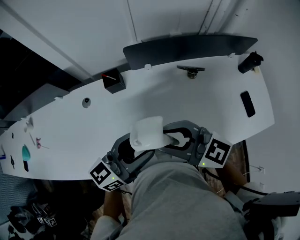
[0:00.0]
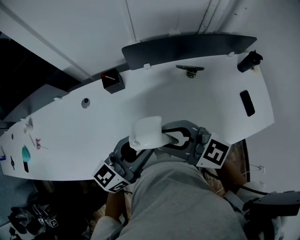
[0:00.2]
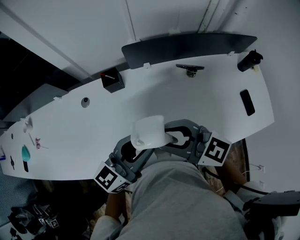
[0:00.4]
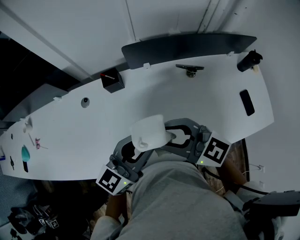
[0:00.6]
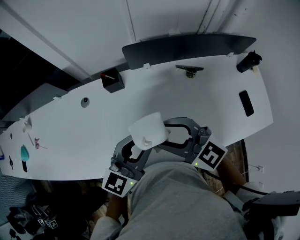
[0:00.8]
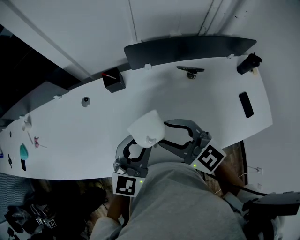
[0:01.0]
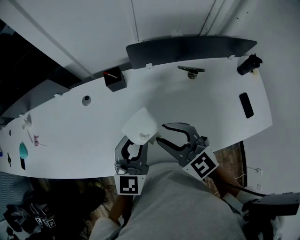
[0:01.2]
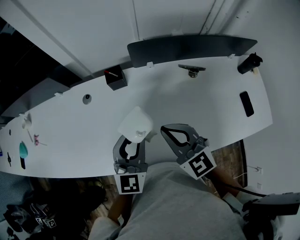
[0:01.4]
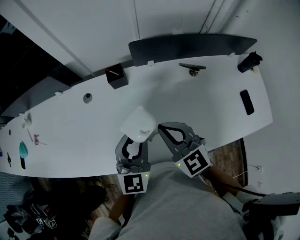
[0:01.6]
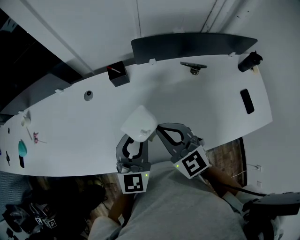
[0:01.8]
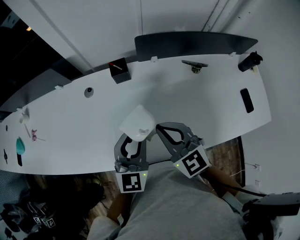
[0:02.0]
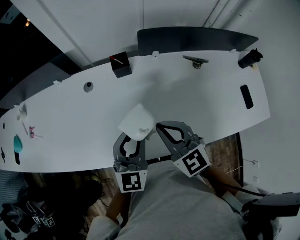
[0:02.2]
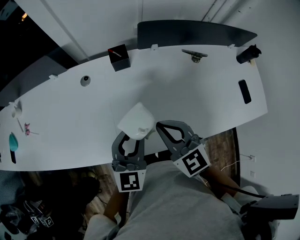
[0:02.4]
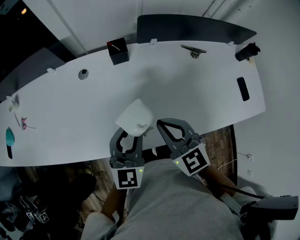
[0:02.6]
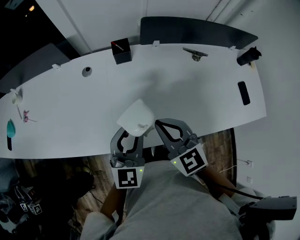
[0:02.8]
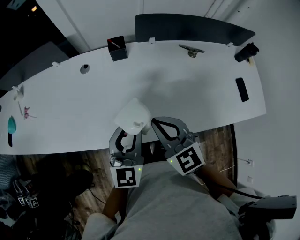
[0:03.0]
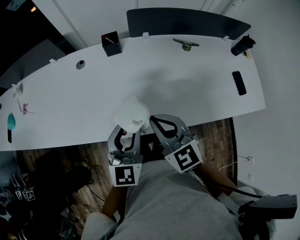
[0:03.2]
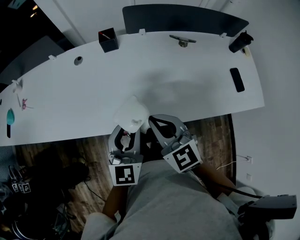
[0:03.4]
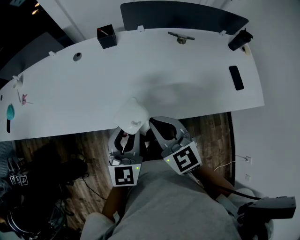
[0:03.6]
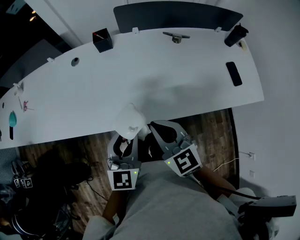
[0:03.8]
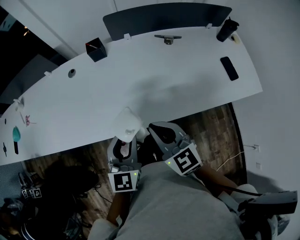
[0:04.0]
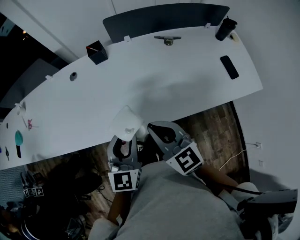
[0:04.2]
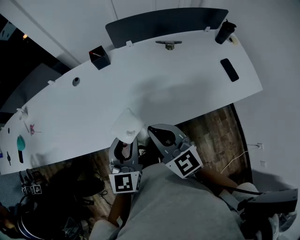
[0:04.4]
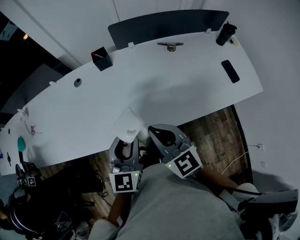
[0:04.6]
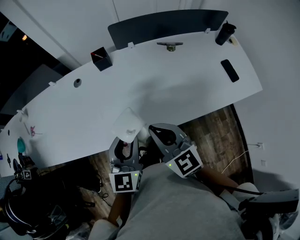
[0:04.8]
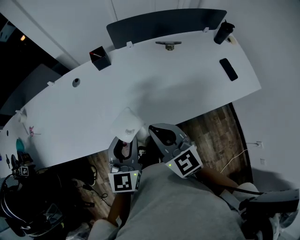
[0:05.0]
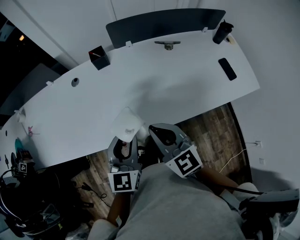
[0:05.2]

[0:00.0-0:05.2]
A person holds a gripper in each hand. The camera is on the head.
0:00.0 to 0:01.8: The right gripper travels downward by some 5 cm, changes its angle by roughly 30 degrees, and closes, while the left gripper is displaced to the left by some 5 cm, turns by some 50 degrees, and closes.
0:01.8 to 0:03.4: The grippers both shift backward by roughly 15 cm.
0:03.4 to 0:05.2: The grippers stay close to where they were, moving slightly.

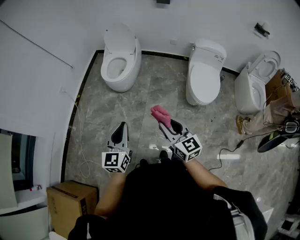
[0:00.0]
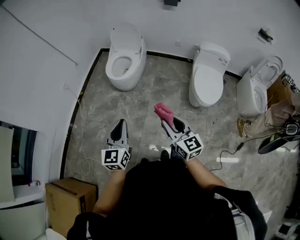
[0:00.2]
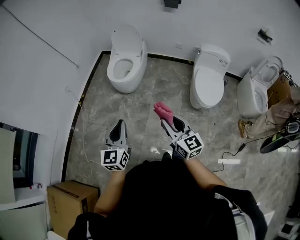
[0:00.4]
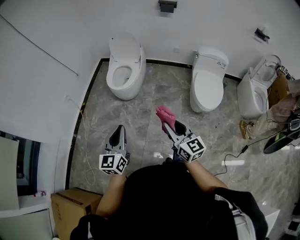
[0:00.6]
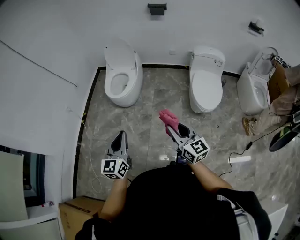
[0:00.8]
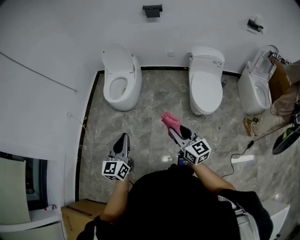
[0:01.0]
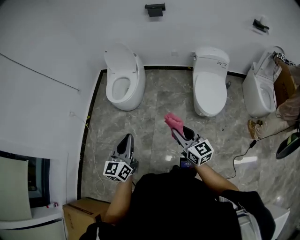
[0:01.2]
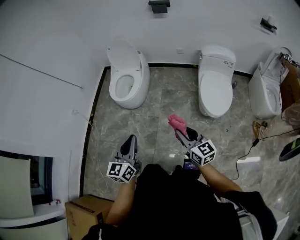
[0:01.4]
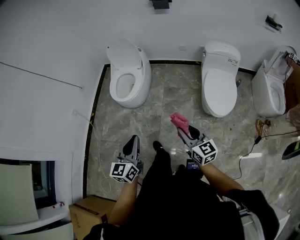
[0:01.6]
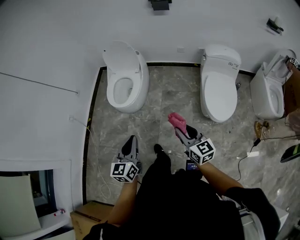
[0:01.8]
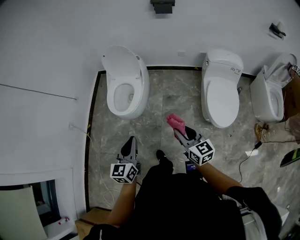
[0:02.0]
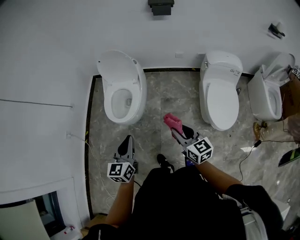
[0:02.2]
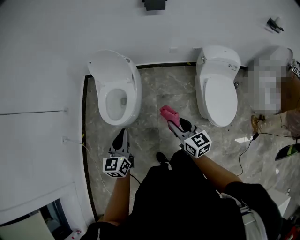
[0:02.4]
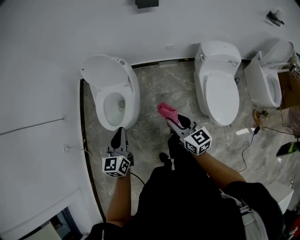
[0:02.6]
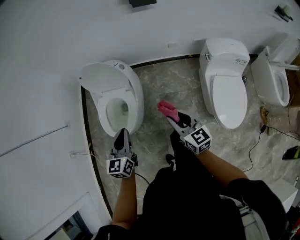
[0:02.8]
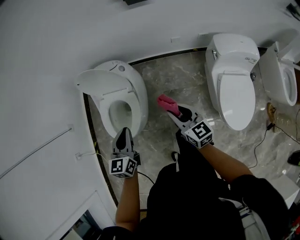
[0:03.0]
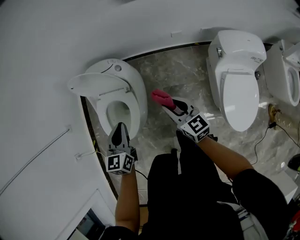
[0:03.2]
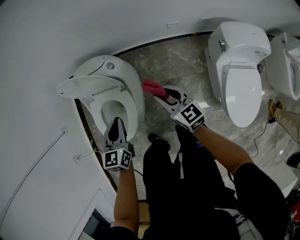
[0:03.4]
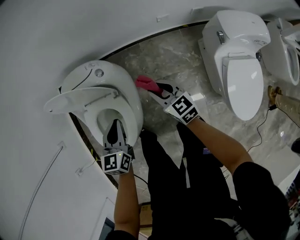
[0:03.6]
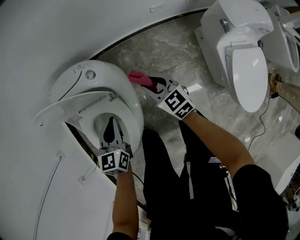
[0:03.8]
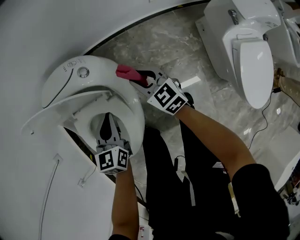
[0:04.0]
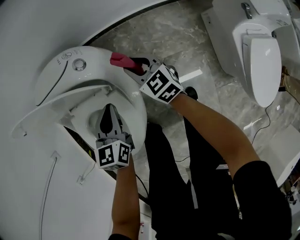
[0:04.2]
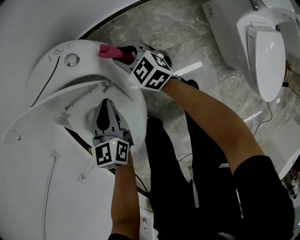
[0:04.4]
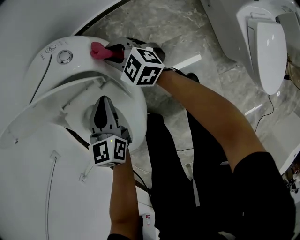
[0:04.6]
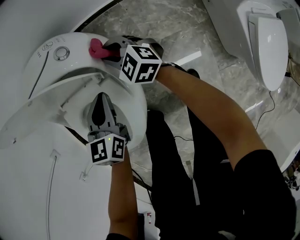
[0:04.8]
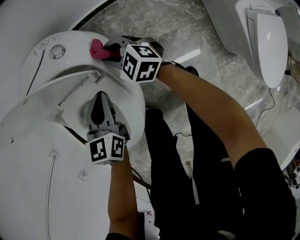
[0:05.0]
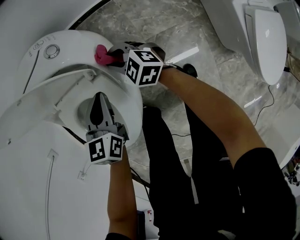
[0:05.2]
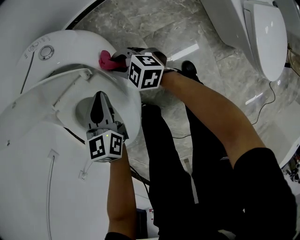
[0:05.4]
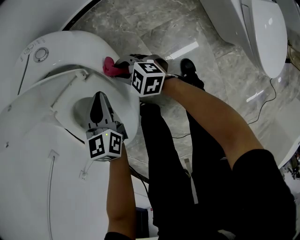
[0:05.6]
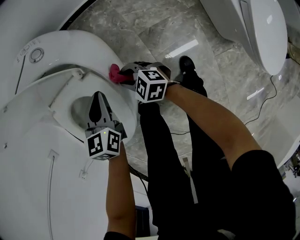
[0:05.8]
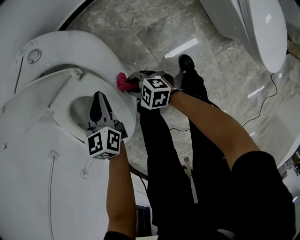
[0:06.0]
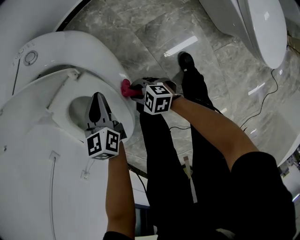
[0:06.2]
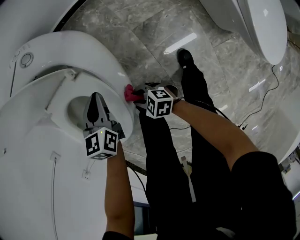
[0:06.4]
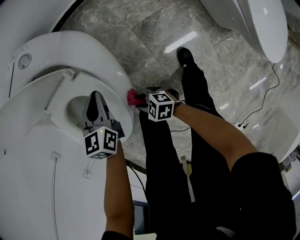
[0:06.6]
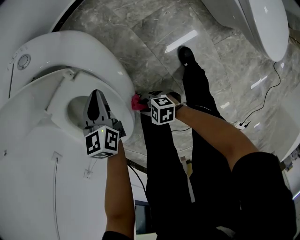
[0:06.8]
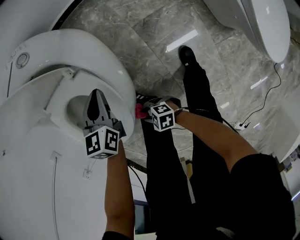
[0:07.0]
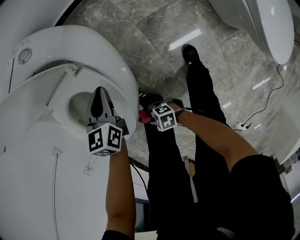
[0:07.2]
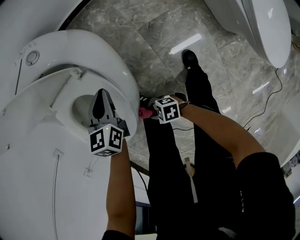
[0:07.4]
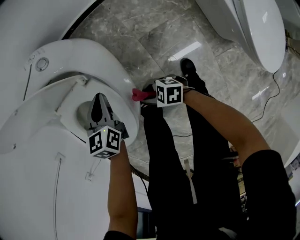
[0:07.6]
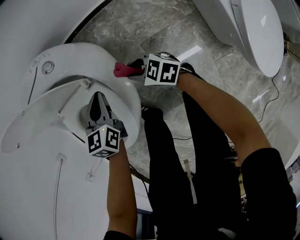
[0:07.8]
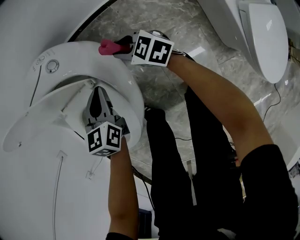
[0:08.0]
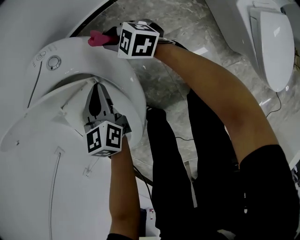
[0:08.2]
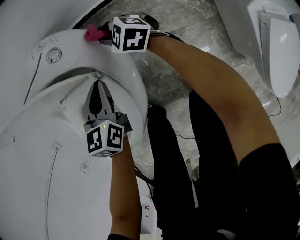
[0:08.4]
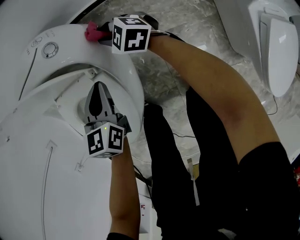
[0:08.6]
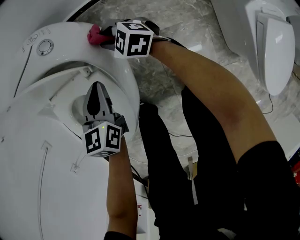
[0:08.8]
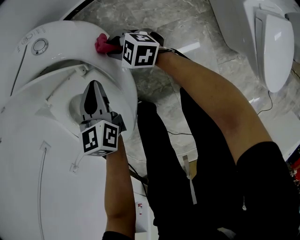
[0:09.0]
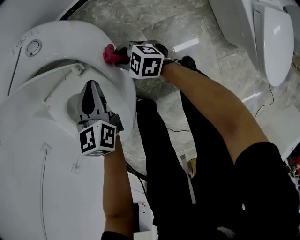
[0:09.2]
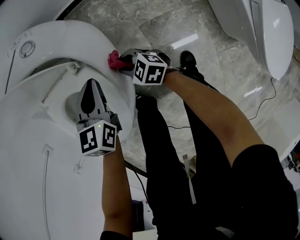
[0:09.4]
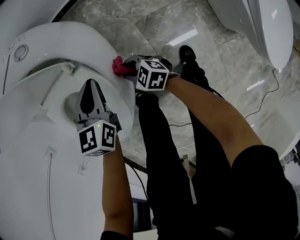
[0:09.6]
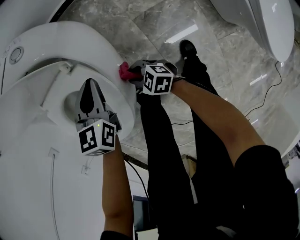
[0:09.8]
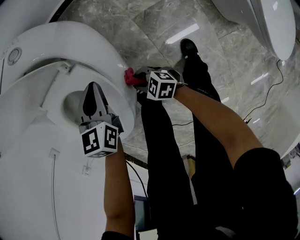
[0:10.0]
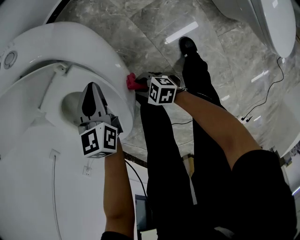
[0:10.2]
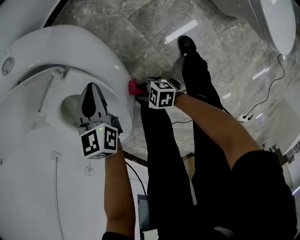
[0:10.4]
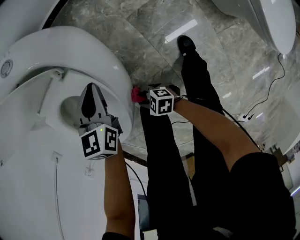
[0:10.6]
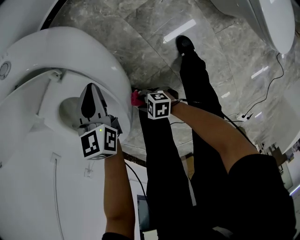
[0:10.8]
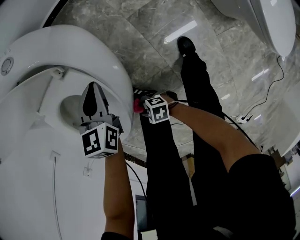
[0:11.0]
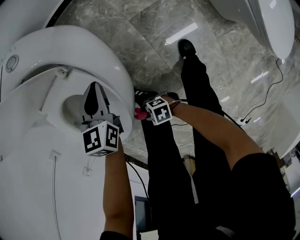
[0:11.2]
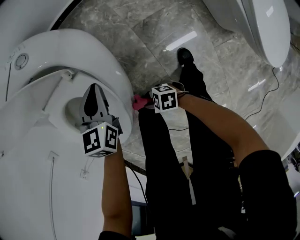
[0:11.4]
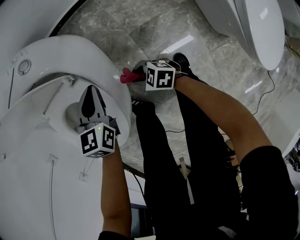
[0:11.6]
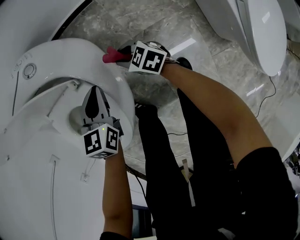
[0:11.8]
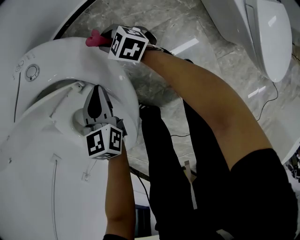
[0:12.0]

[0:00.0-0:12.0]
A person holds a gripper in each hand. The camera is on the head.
0:00.0 to 0:01.6: The left gripper travels forward by some 10 cm. The right gripper is displaced forward, to the right and downward by approximately 15 cm.
0:01.6 to 0:03.0: The pair of grippers is taken forward, approximately 50 cm.
0:03.0 to 0:04.4: Both grippers move downward and forward, roughly 40 cm. The right gripper swivels roughly 20 degrees.
0:04.4 to 0:06.0: The left gripper shifts some 10 cm downward and backward, while the right gripper travels backward, to the left and downward by some 30 cm, and changes its angle by roughly 30 degrees.
0:07.6 to 0:09.0: The right gripper travels forward by approximately 25 cm, and turns by some 20 degrees.
0:09.0 to 0:10.4: The left gripper shifts roughly 5 cm backward; the right gripper is displaced backward and to the left by approximately 30 cm, and turns by roughly 30 degrees.
0:10.4 to 0:12.0: The left gripper ends up roughly 5 cm from where it was. The right gripper changes place by some 40 cm, and rotates about 20 degrees.

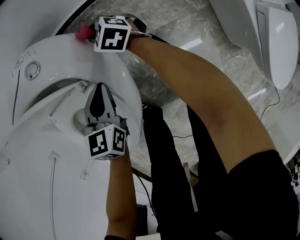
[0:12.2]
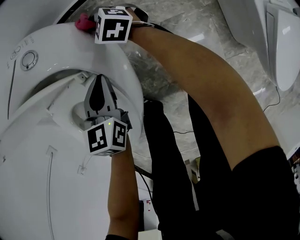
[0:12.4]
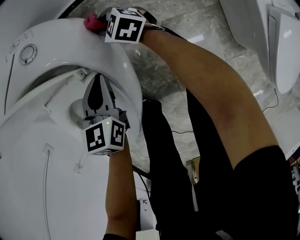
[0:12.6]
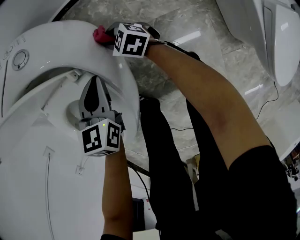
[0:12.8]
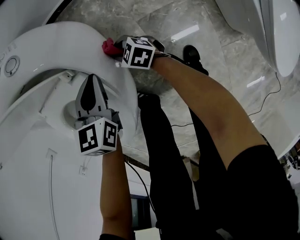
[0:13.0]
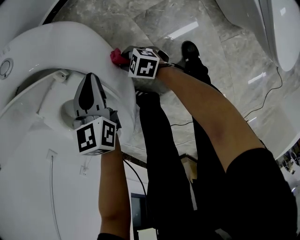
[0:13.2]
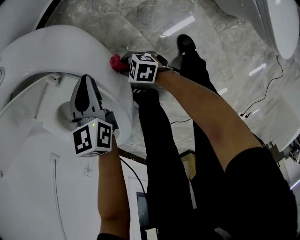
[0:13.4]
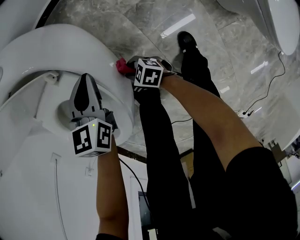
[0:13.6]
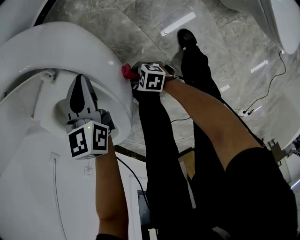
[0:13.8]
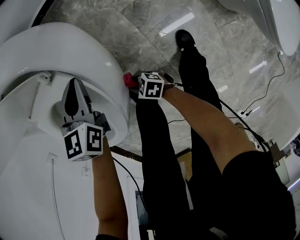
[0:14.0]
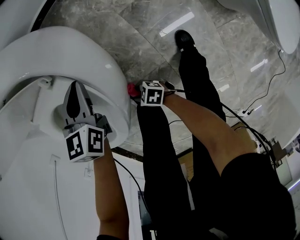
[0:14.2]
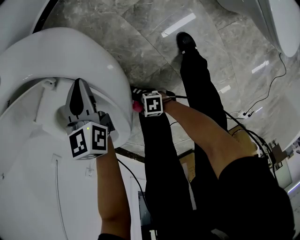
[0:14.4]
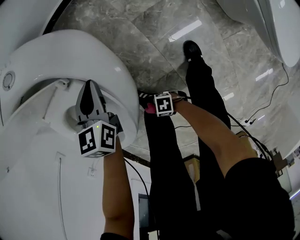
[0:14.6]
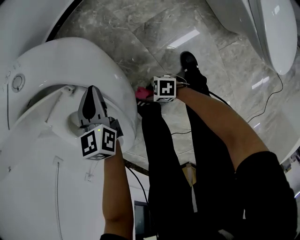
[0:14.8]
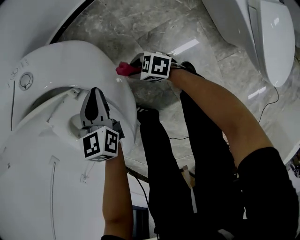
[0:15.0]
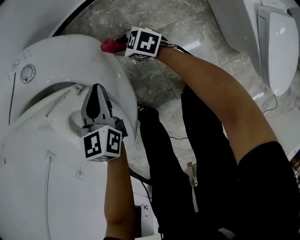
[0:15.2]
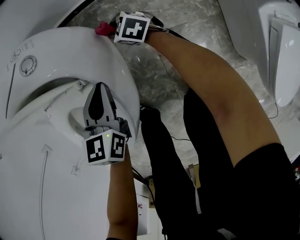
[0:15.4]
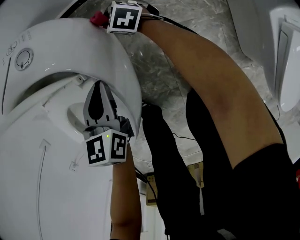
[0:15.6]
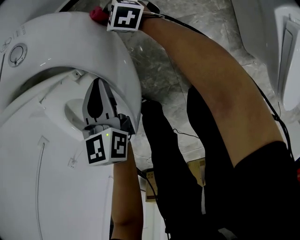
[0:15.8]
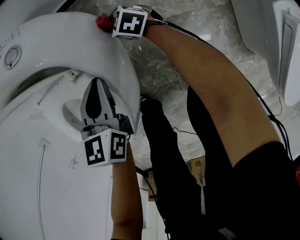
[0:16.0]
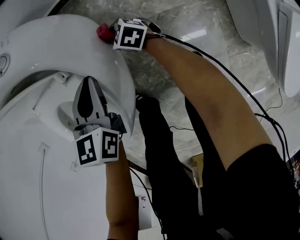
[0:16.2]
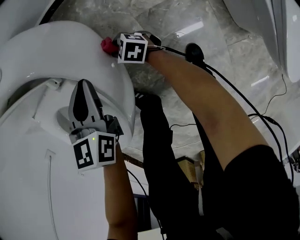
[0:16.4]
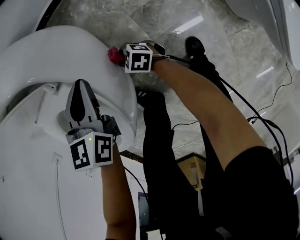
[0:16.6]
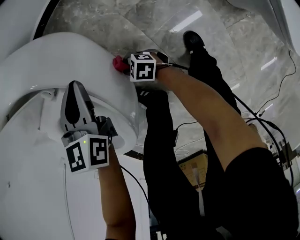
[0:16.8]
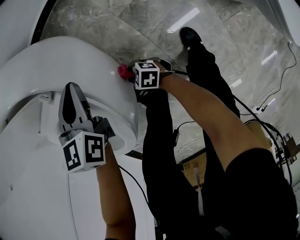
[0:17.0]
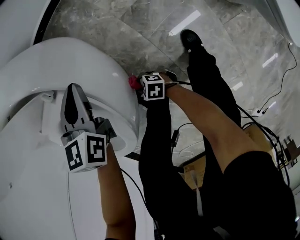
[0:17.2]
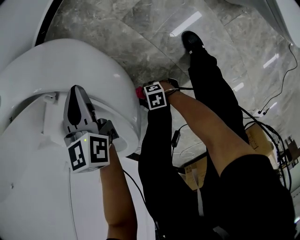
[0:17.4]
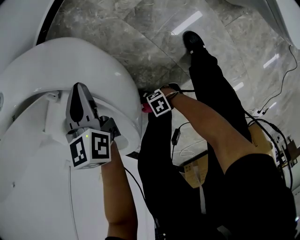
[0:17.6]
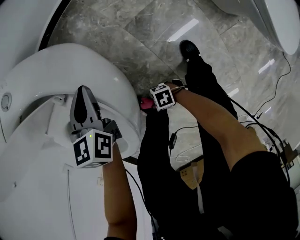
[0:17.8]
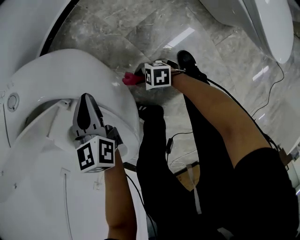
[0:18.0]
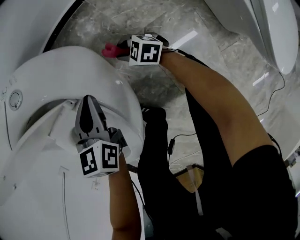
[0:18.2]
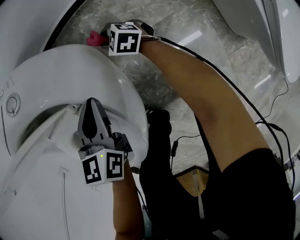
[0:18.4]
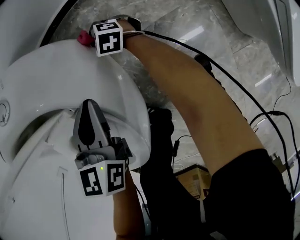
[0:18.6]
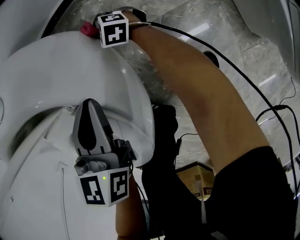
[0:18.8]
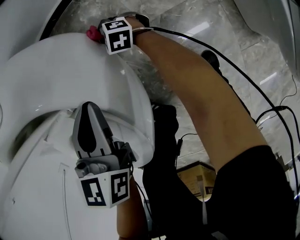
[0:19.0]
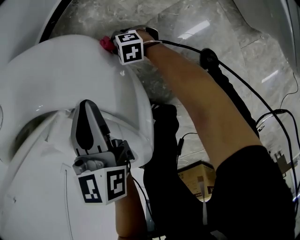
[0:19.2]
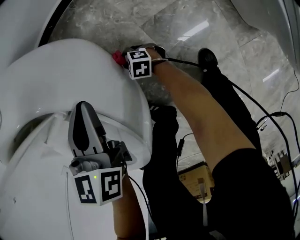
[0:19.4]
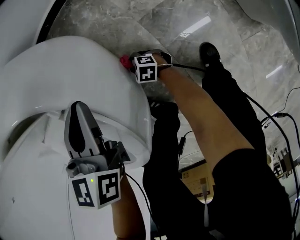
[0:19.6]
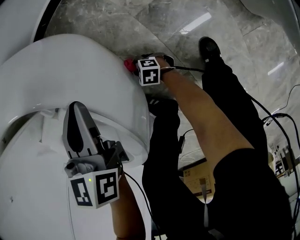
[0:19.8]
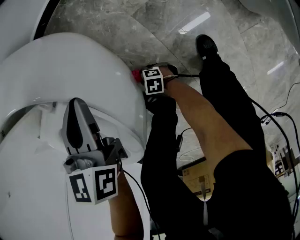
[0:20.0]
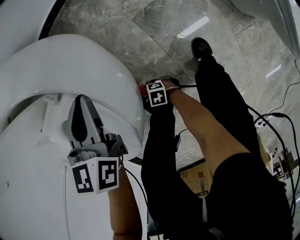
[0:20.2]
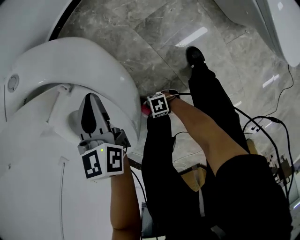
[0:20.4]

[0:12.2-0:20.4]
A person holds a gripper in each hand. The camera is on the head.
0:12.2 to 0:13.8: The right gripper is displaced backward and to the left by roughly 40 cm, and turns by roughly 30 degrees. Meanwhile the left gripper changes place by approximately 5 cm.
0:13.8 to 0:15.4: The right gripper changes place by roughly 35 cm, and swivels roughly 20 degrees, while the left gripper moves about 5 cm.
0:15.4 to 0:17.2: The right gripper goes roughly 40 cm backward and to the left, and changes its angle by about 20 degrees.
0:17.2 to 0:18.8: The right gripper ends up some 40 cm from where it was, and rotates roughly 30 degrees.
0:18.8 to 0:20.4: The right gripper ends up roughly 50 cm from where it was, and rotates approximately 50 degrees. Meanwhile the left gripper moves roughly 5 cm.
